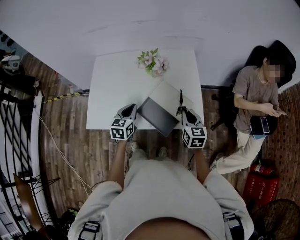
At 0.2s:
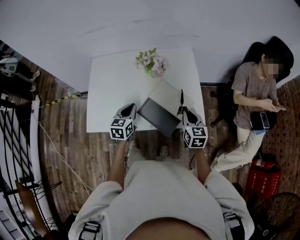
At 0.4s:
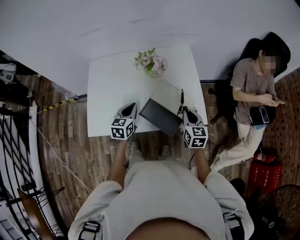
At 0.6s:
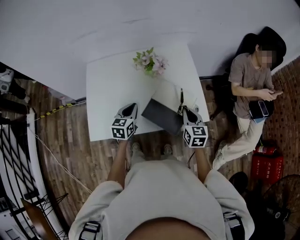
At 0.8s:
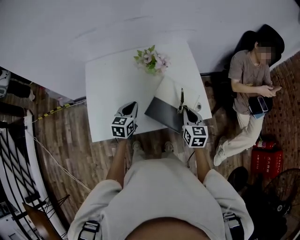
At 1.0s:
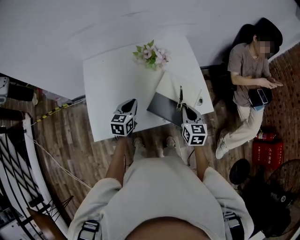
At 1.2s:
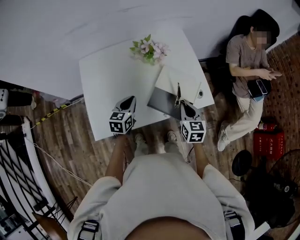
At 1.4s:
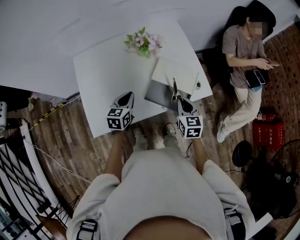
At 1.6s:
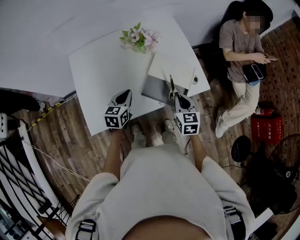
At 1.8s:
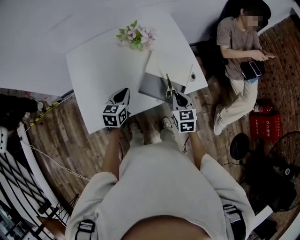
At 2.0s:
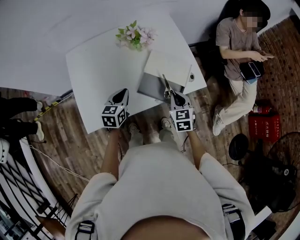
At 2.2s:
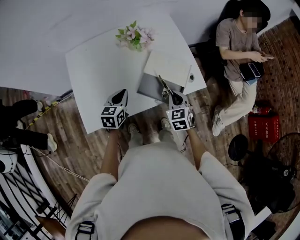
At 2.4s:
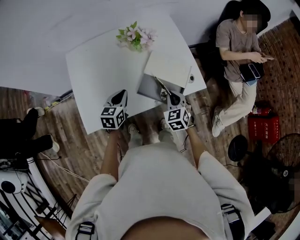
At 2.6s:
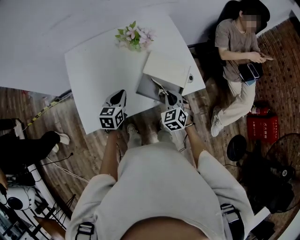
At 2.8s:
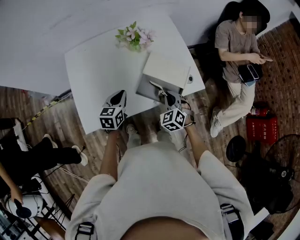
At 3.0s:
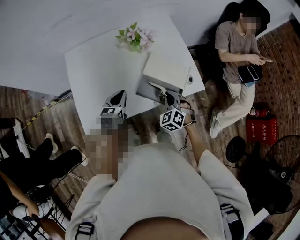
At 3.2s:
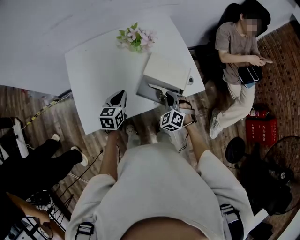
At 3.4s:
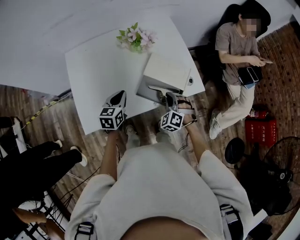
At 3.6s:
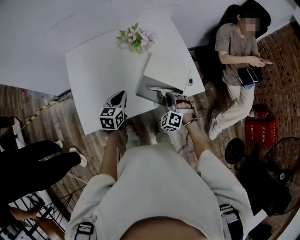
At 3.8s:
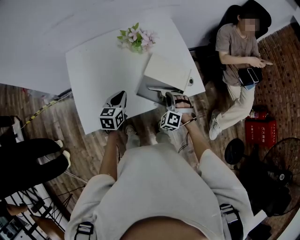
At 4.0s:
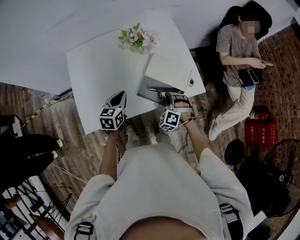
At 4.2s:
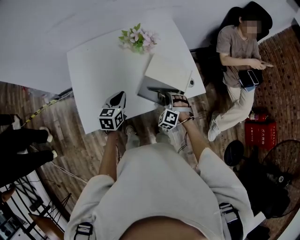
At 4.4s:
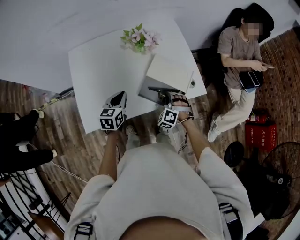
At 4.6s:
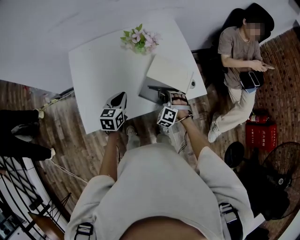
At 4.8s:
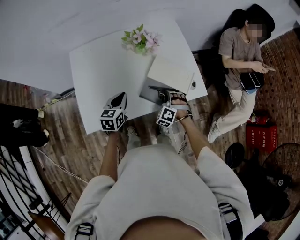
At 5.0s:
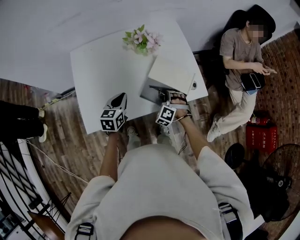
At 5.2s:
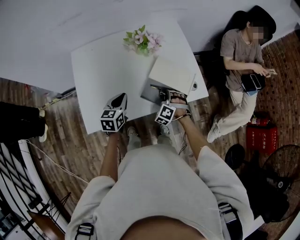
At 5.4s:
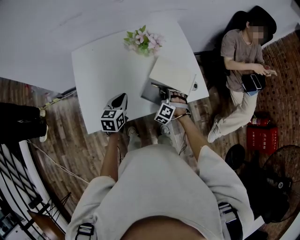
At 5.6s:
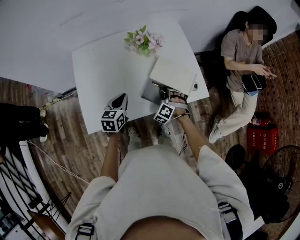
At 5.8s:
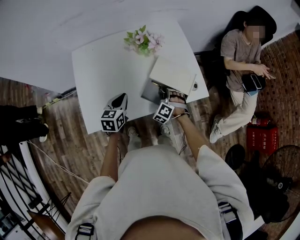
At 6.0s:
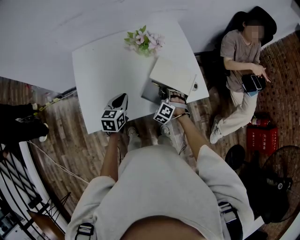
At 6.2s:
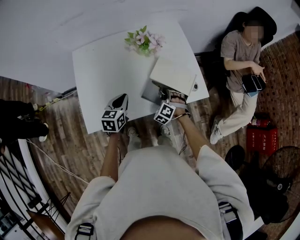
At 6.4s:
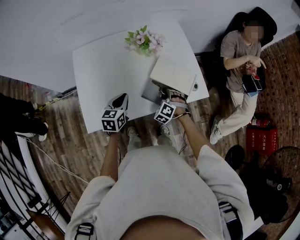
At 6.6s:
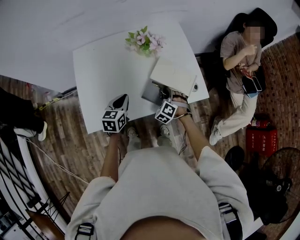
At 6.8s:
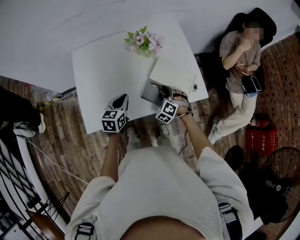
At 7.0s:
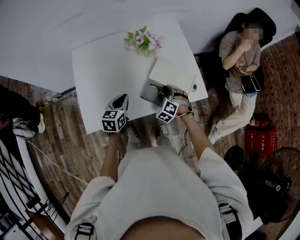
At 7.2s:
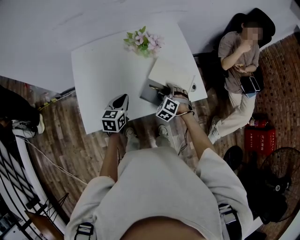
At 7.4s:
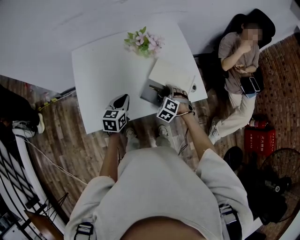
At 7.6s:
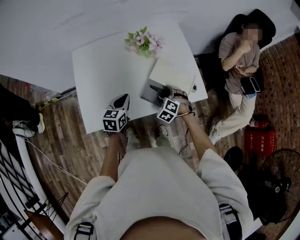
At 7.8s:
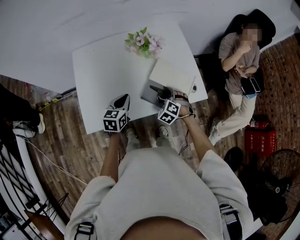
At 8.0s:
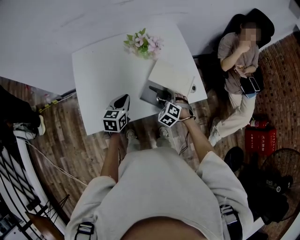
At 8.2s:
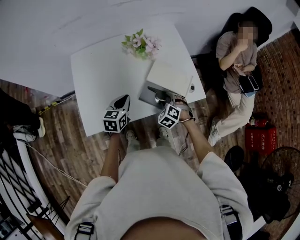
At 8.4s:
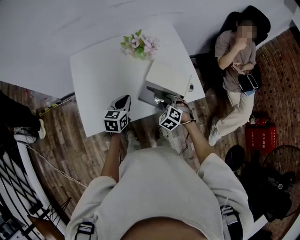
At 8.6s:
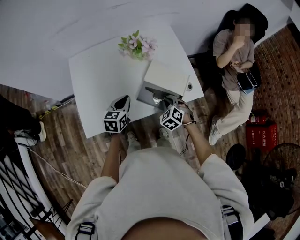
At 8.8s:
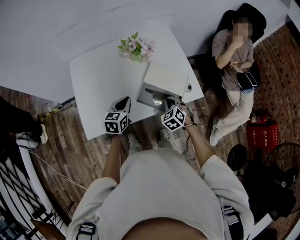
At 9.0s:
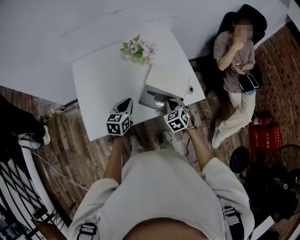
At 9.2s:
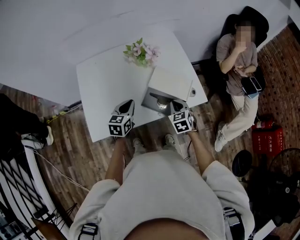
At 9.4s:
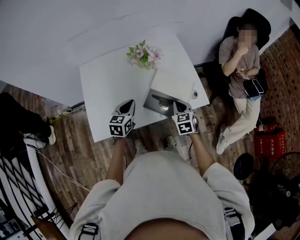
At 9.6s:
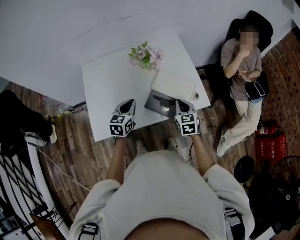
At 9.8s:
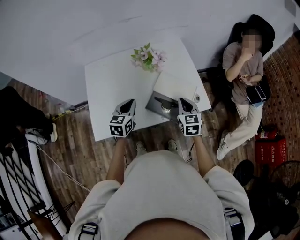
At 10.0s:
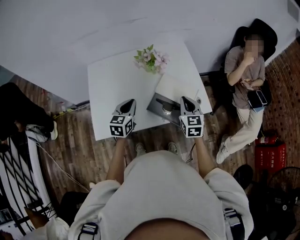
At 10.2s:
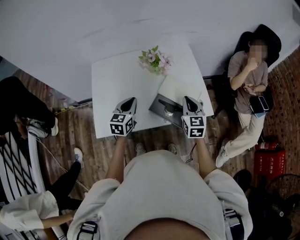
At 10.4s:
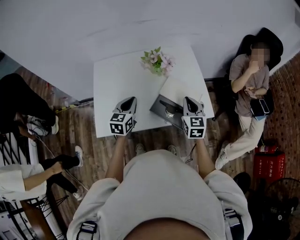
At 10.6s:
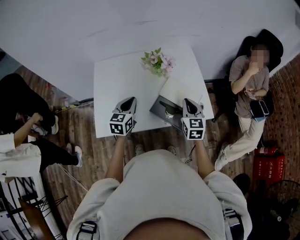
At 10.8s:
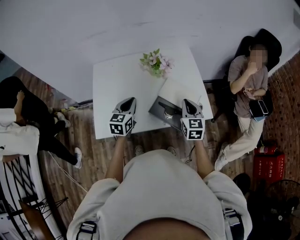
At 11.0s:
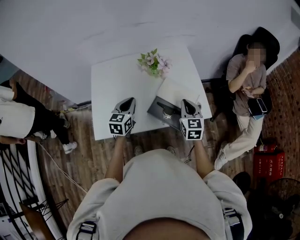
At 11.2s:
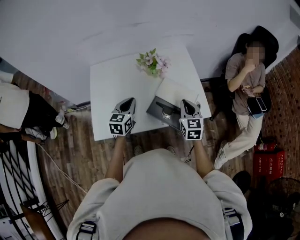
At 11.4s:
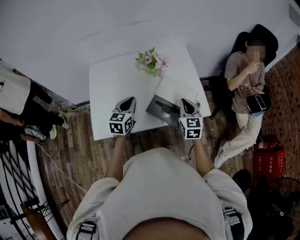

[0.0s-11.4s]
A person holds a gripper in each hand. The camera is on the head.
0.0s to 1.4s: The left gripper moves to the left, approximately 10 cm, and rotates approximately 20 degrees; the right gripper shifts some 10 cm to the left and backward.
1.4s to 2.8s: The right gripper changes place by about 5 cm, and twists approximately 40 degrees counterclockwise, seen from behind.
2.8s to 4.2s: The right gripper goes roughly 5 cm downward, and turns by approximately 30 degrees.
4.2s to 5.6s: The grippers stay close to where they were, moving slightly.
5.6s to 7.2s: The right gripper opens its fingers.
7.2s to 8.6s: The right gripper moves some 5 cm, and closes its fingers.
8.6s to 10.0s: The right gripper heads upward, covering about 15 cm, and rotates about 50 degrees; the left gripper travels upward by about 5 cm.
10.0s to 11.4s: The grippers make only small movements.

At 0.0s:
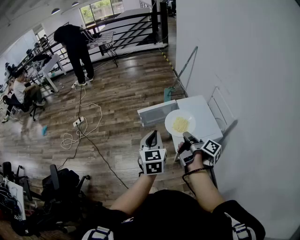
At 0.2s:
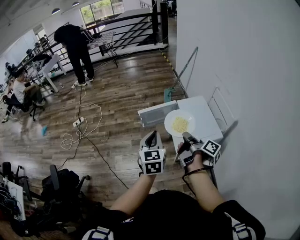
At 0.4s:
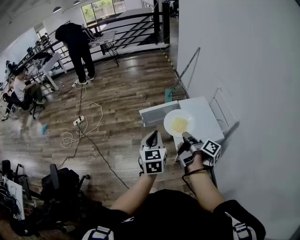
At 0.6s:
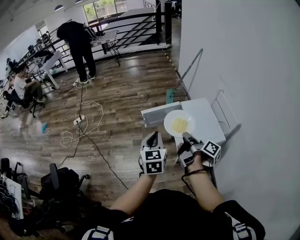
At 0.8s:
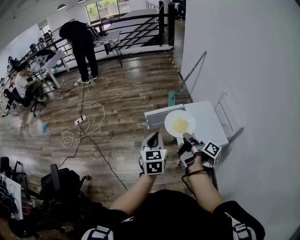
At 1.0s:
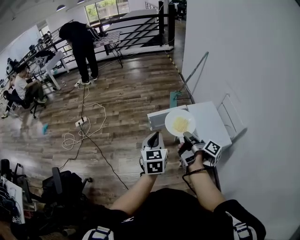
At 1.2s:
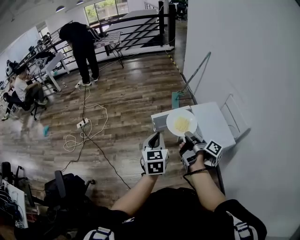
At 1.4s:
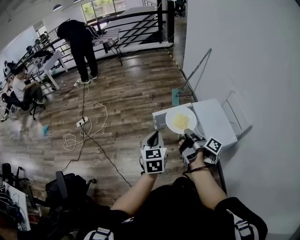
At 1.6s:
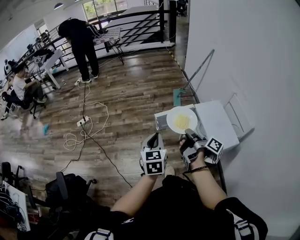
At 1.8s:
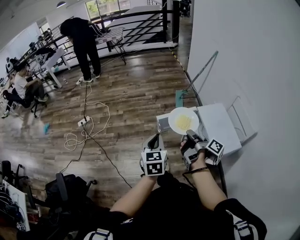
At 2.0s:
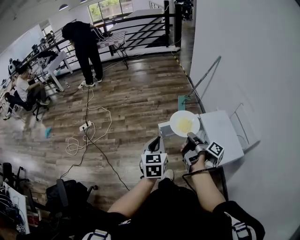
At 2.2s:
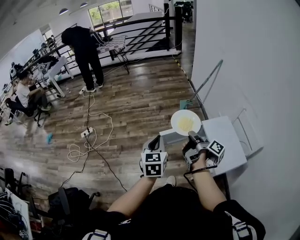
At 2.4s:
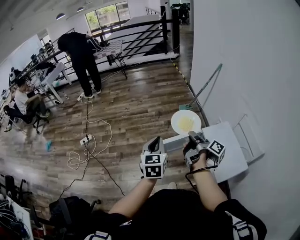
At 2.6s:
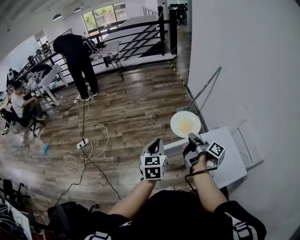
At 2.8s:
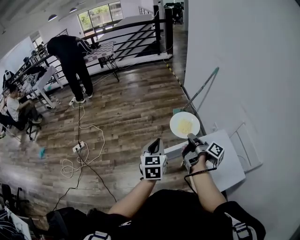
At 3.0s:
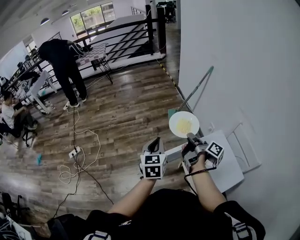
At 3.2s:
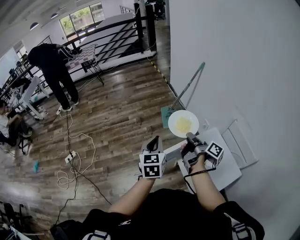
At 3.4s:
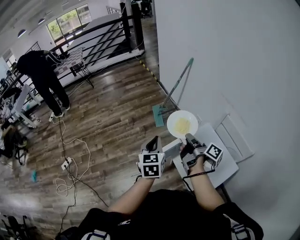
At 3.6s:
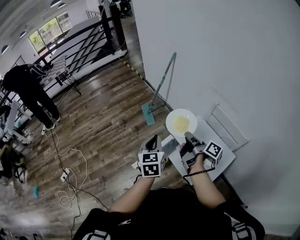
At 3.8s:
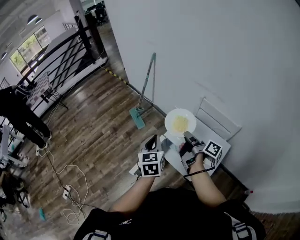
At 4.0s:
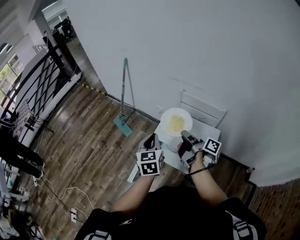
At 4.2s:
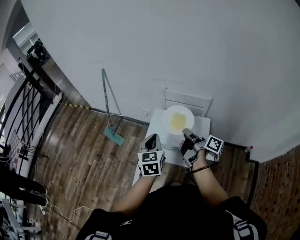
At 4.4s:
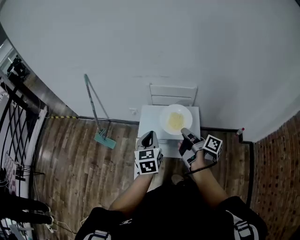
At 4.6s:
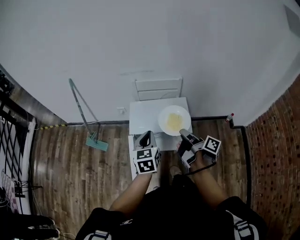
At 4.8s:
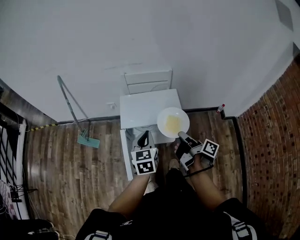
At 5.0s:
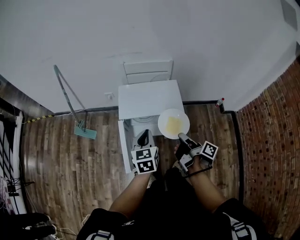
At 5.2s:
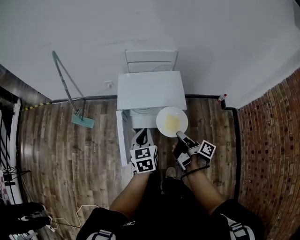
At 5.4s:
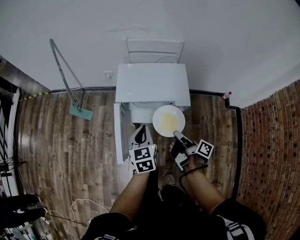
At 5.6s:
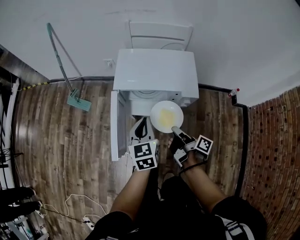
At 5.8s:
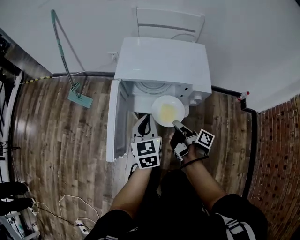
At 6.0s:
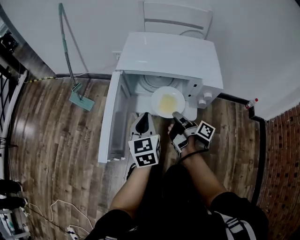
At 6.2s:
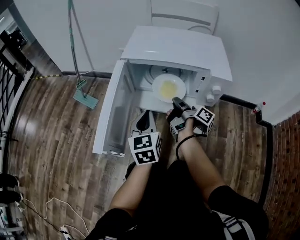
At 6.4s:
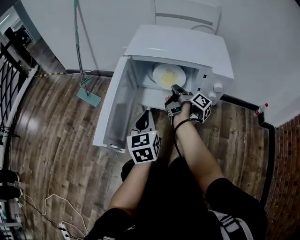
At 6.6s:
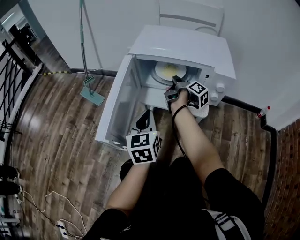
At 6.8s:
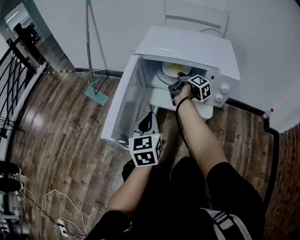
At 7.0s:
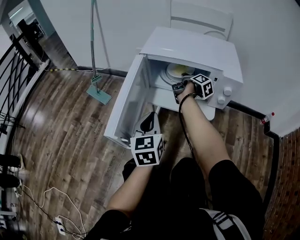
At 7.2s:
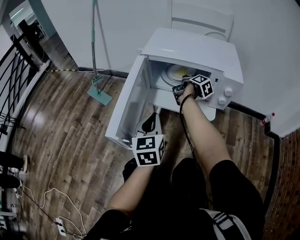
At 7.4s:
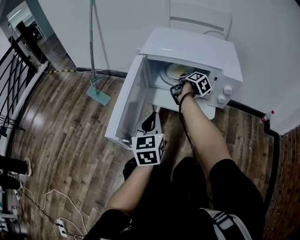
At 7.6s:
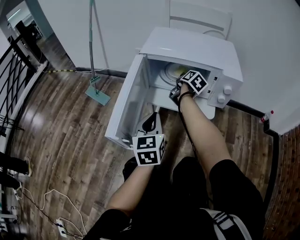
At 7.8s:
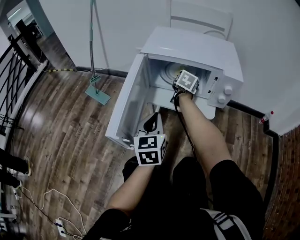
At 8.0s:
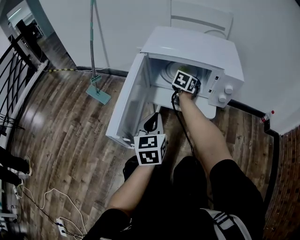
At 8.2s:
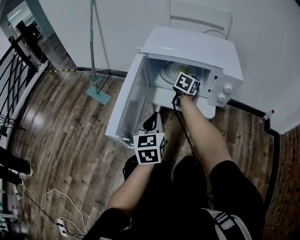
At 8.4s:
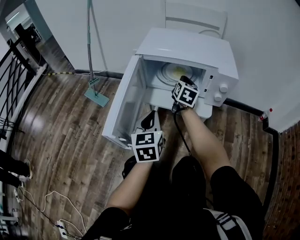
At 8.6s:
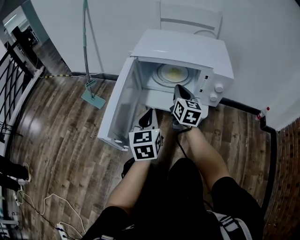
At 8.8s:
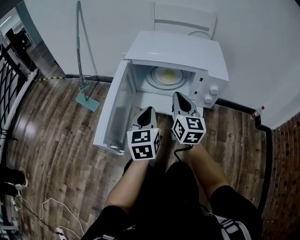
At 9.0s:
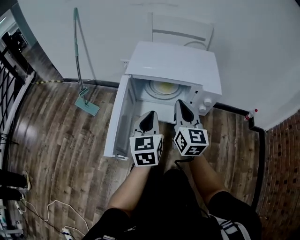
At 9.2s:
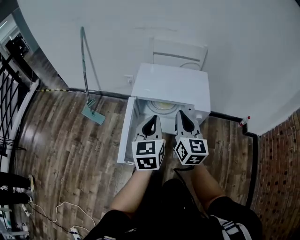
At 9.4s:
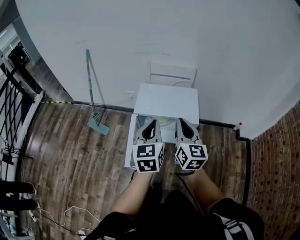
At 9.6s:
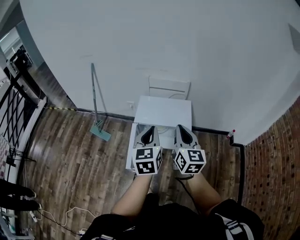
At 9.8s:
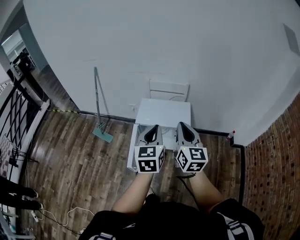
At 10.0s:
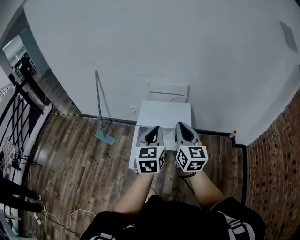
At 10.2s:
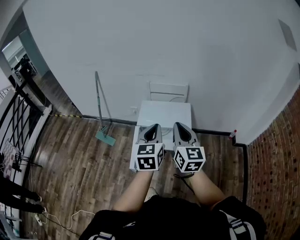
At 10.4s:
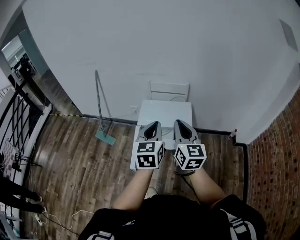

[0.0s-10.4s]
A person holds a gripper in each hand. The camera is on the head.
0.0s to 1.4s: The left gripper changes place by some 15 cm.
1.4s to 3.0s: The left gripper ends up approximately 35 cm from where it was.
3.0s to 4.4s: The left gripper shifts by approximately 25 cm, and rotates some 60 degrees.
4.4s to 6.0s: The left gripper is displaced downward by about 35 cm.
6.0s to 7.4s: The left gripper changes place by about 5 cm.
7.4s to 9.0s: The left gripper moves upward, some 10 cm.
9.0s to 10.4s: The left gripper shifts about 40 cm upward.

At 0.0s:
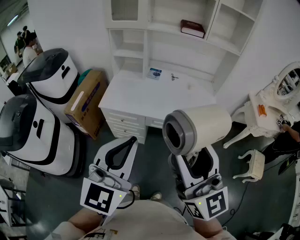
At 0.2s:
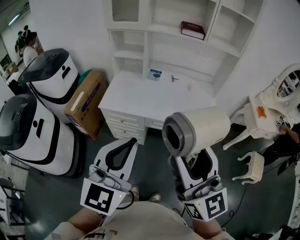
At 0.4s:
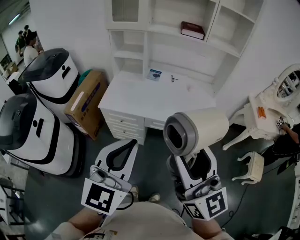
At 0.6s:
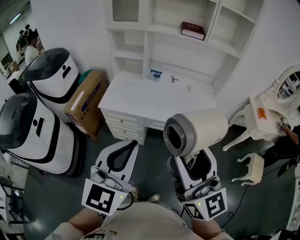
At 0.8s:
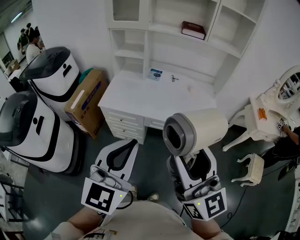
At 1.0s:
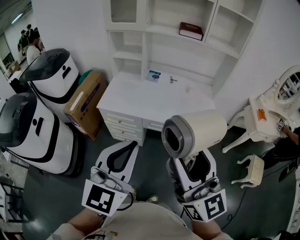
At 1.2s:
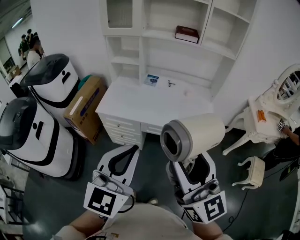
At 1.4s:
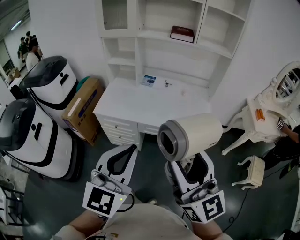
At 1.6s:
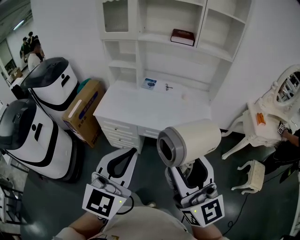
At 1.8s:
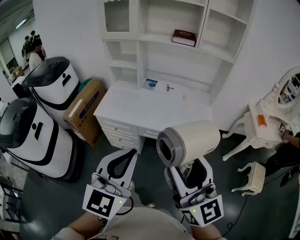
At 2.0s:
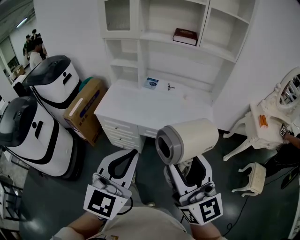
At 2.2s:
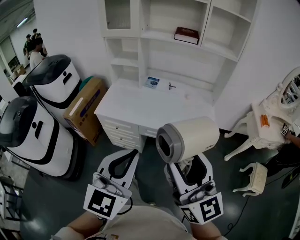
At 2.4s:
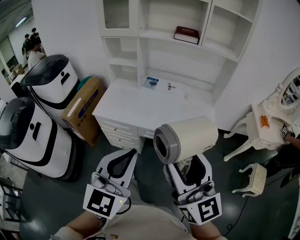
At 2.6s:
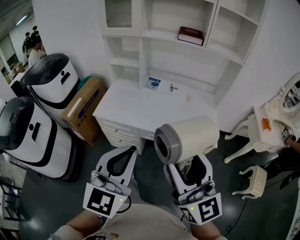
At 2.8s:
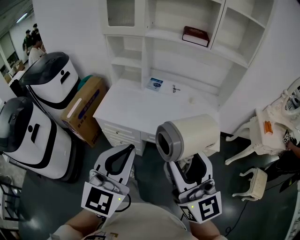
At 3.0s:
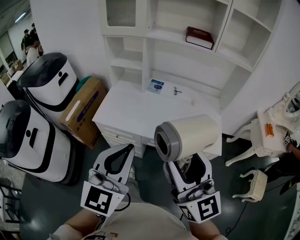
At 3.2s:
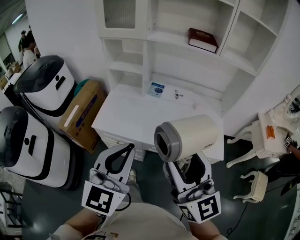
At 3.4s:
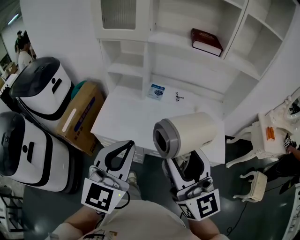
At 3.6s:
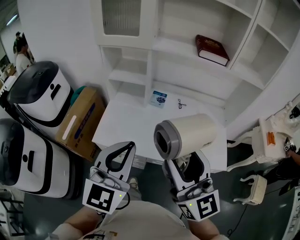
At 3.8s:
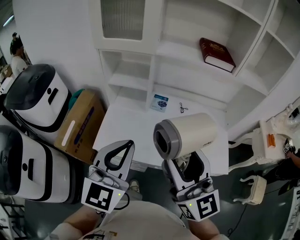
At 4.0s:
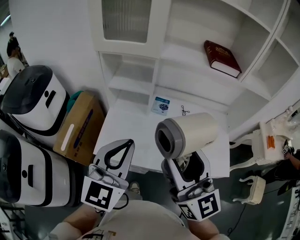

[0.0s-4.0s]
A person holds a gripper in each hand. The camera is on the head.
0.0s to 1.4s: Both grippers move to the right, about 10 cm.
1.4s to 2.6s: Both grippers travel together forward, about 5 cm.
2.6s to 4.0s: Both grippers move forward and to the left, about 40 cm.
